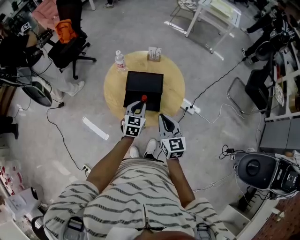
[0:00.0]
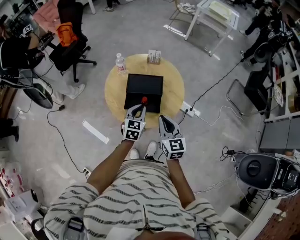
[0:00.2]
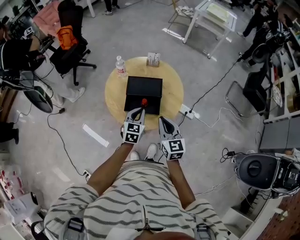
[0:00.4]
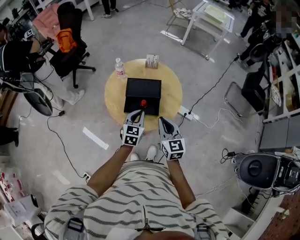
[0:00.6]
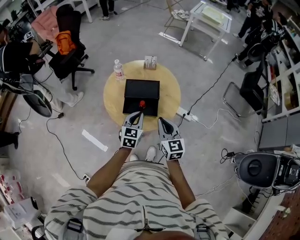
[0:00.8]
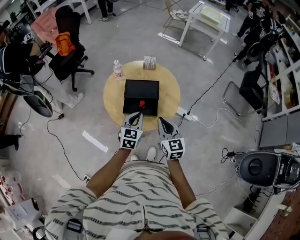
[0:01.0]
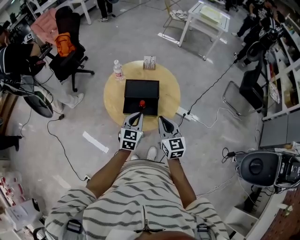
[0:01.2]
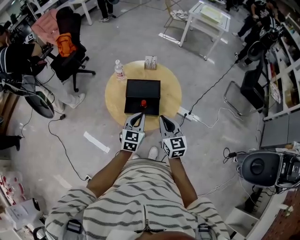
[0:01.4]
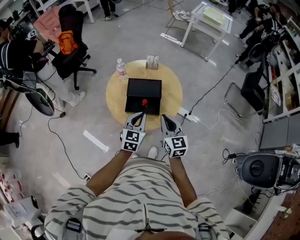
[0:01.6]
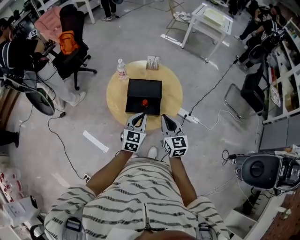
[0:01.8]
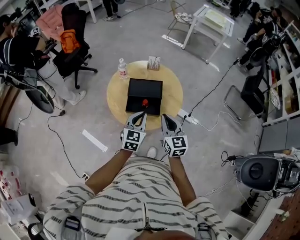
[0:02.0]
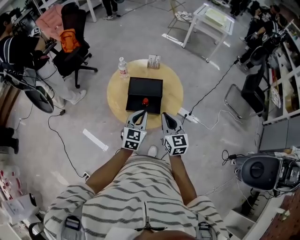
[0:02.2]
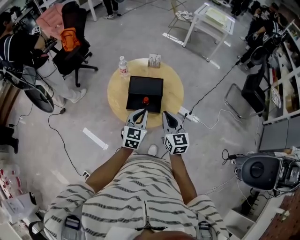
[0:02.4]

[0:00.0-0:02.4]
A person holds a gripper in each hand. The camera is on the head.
0:00.0 to 0:01.2: The left gripper heads backward and upward, covering about 10 cm.
0:01.2 to 0:02.4: There are only small adjustments of the grippers.

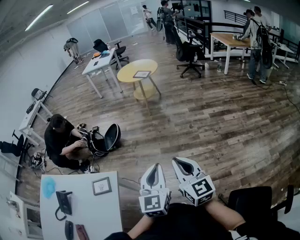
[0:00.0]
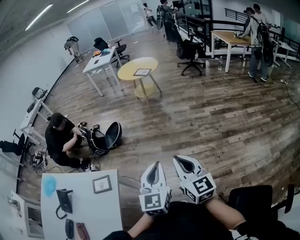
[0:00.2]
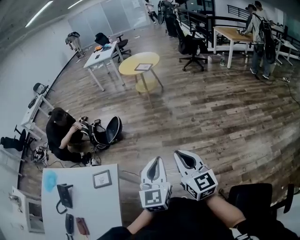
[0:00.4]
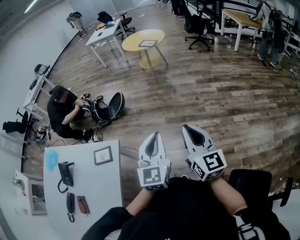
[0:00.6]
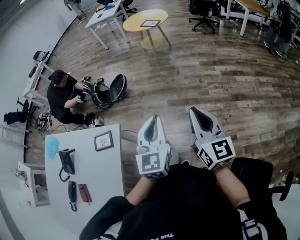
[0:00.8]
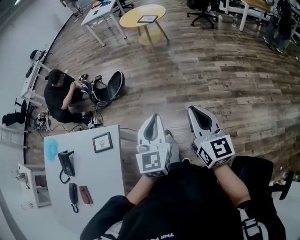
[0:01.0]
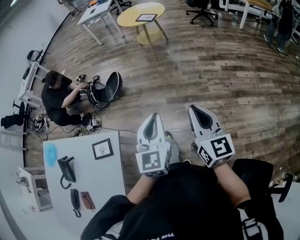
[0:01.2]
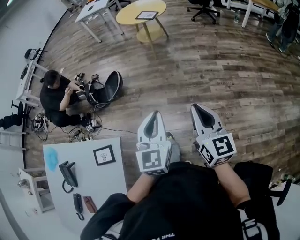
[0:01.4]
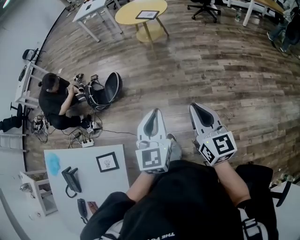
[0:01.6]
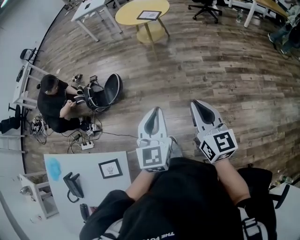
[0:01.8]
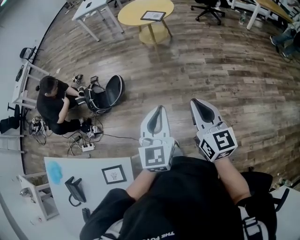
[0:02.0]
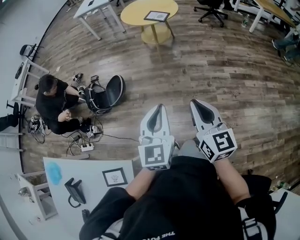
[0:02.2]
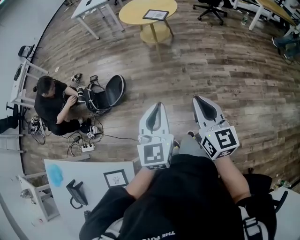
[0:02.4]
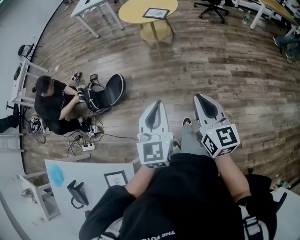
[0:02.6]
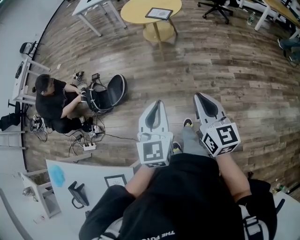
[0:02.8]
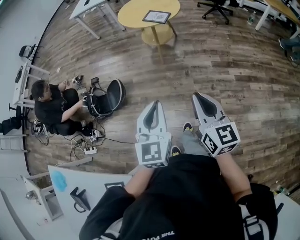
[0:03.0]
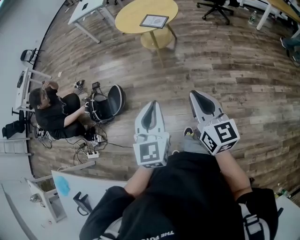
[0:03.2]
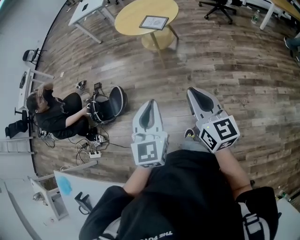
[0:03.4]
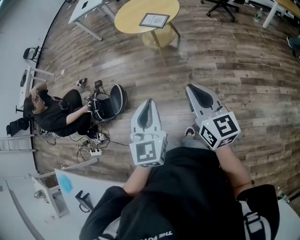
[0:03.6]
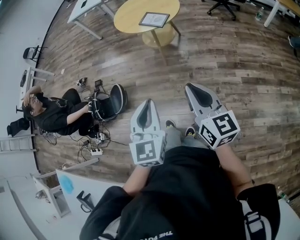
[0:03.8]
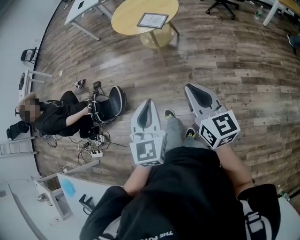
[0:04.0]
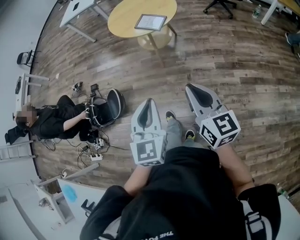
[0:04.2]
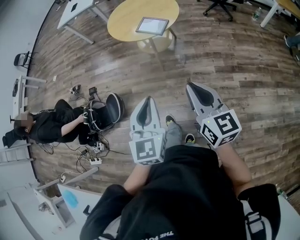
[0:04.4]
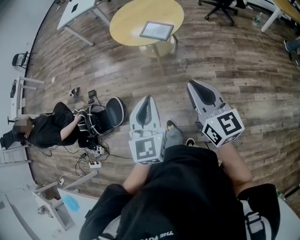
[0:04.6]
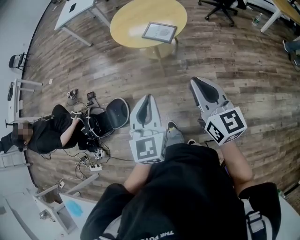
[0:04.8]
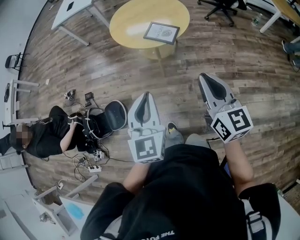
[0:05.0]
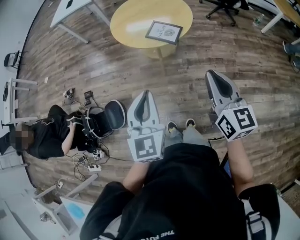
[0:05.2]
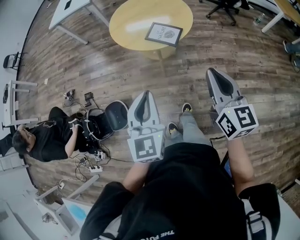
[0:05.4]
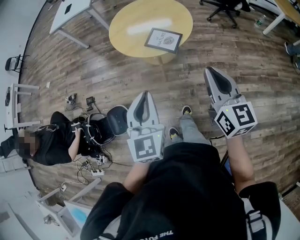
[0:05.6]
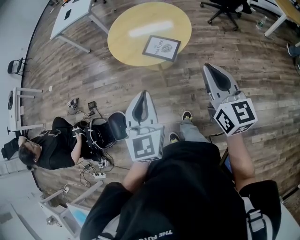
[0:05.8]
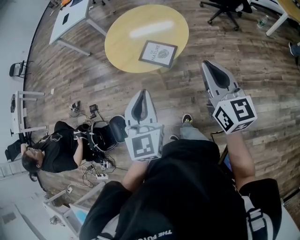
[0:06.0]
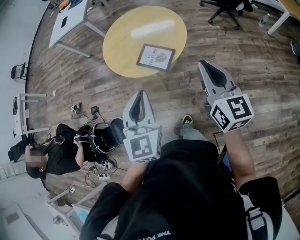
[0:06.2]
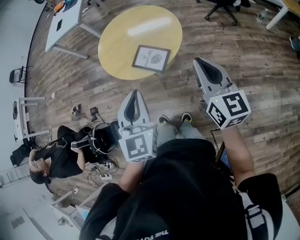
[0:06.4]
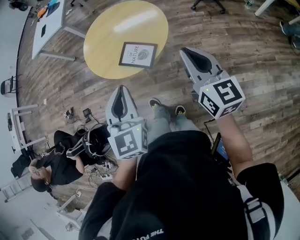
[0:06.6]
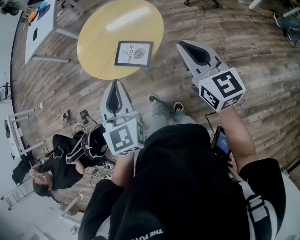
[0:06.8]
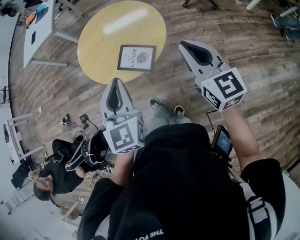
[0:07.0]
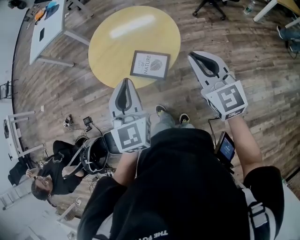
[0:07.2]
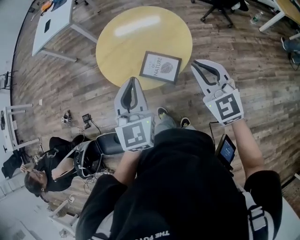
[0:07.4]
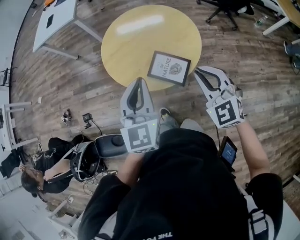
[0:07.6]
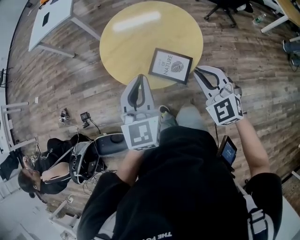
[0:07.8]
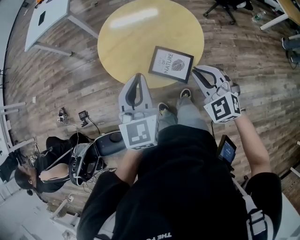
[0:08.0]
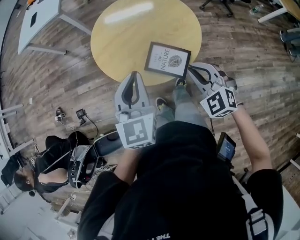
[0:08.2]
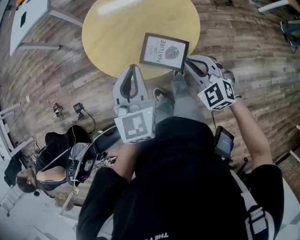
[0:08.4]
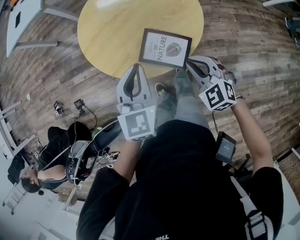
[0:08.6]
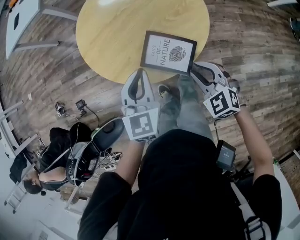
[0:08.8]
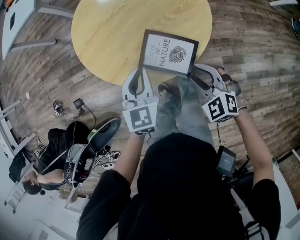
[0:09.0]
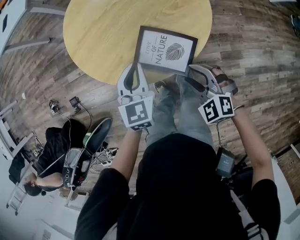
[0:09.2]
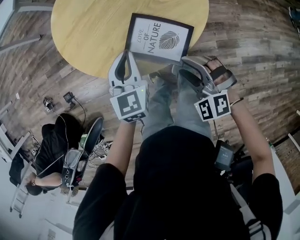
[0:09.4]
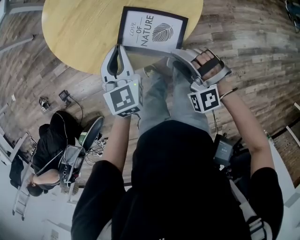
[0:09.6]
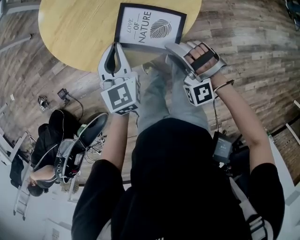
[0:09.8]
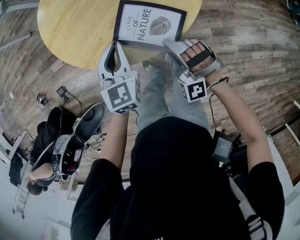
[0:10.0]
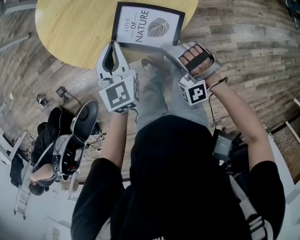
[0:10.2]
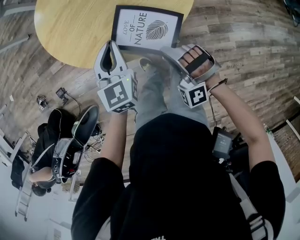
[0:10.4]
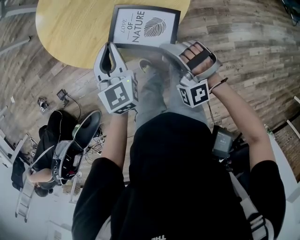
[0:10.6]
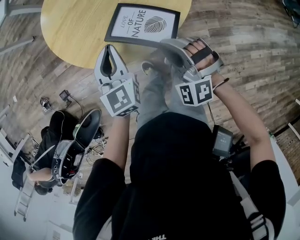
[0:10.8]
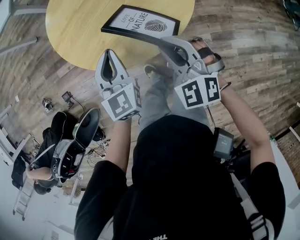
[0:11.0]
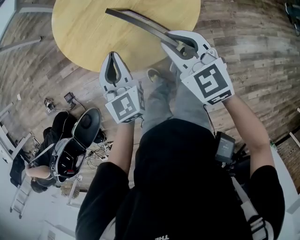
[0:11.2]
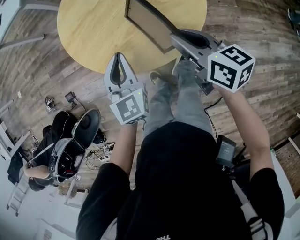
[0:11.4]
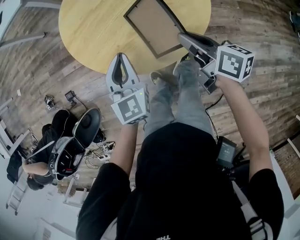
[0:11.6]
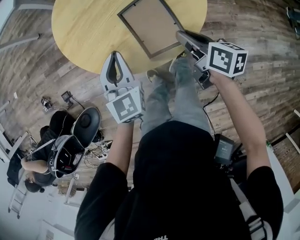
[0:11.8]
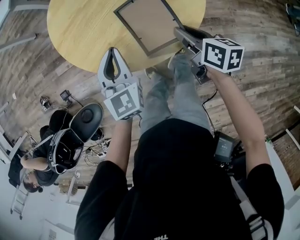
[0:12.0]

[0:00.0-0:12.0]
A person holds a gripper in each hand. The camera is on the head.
0:00.0 to 0:01.6: The two grippers go approximately 25 cm forward.
0:01.6 to 0:03.0: Both grippers move forward, approximately 30 cm.
0:03.0 to 0:04.4: Both grippers travel together forward, some 25 cm.
0:04.4 to 0:06.0: The grippers both shift forward by some 30 cm.
0:06.0 to 0:07.6: The right gripper is displaced forward, to the left and downward by some 20 cm, and rolls counterclockwise, seen from behind, by roughly 40 degrees. The left gripper heads forward, covering roughly 20 cm.
0:07.6 to 0:09.0: The two grippers go about 25 cm downward. The right gripper swivels about 20 degrees, and opens.
0:09.0 to 0:10.4: The right gripper changes place by some 5 cm, and turns by roughly 40 degrees. Meanwhile the left gripper shifts about 5 cm downward.
0:10.4 to 0:12.0: The right gripper shifts some 15 cm forward and to the right, reaches roughly 10 cm upward, then returns, and twists about 110 degrees clockwise, seen from behind.

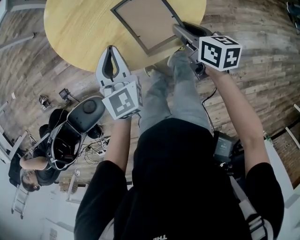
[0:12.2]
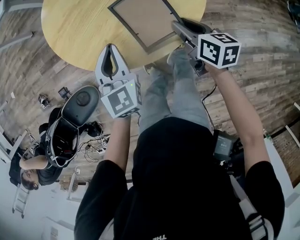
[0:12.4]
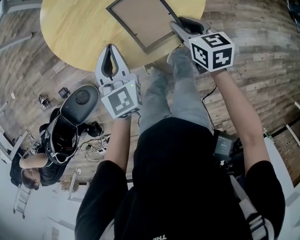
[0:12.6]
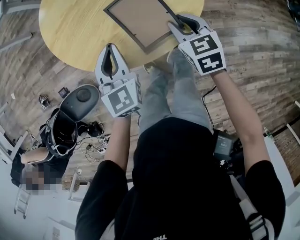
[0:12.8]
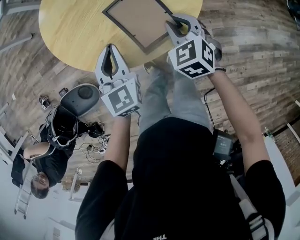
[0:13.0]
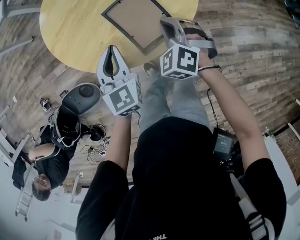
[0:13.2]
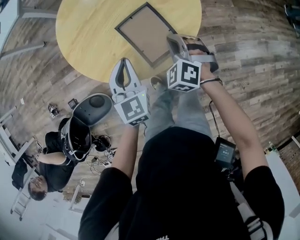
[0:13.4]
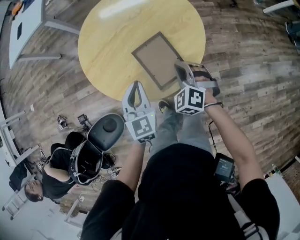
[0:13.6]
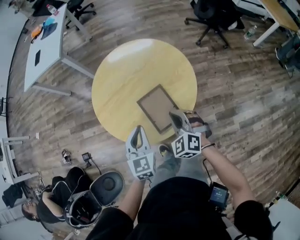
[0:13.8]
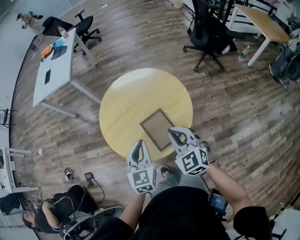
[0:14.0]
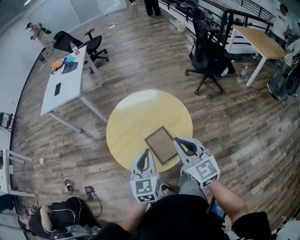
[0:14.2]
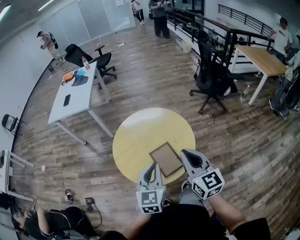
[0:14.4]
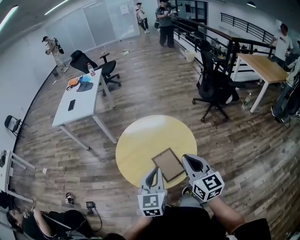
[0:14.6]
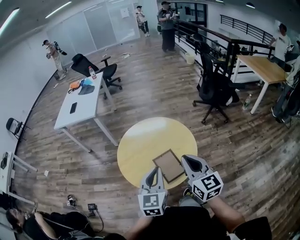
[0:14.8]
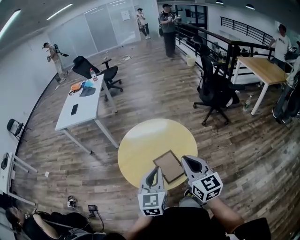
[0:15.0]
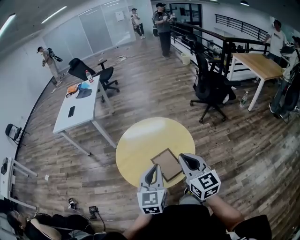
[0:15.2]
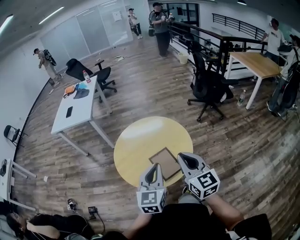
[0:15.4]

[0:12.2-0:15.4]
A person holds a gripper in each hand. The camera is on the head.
0:12.2 to 0:13.8: The right gripper goes roughly 10 cm upward and to the left, twists some 70 degrees counterclockwise, seen from behind, and closes up, while the left gripper heads upward, covering approximately 5 cm.
0:13.8 to 0:15.4: Both grippers move upward, about 25 cm. The left gripper rotates some 20 degrees. Meanwhile the right gripper angles its fingers upward, by approximately 40 degrees.

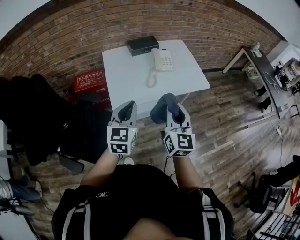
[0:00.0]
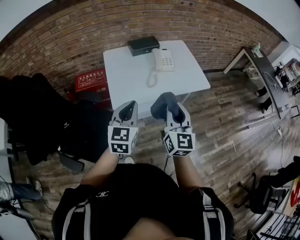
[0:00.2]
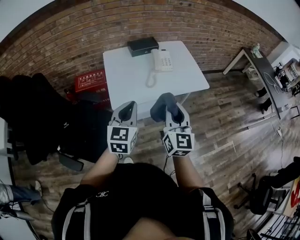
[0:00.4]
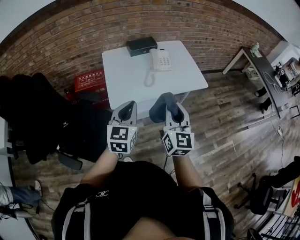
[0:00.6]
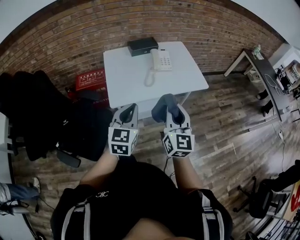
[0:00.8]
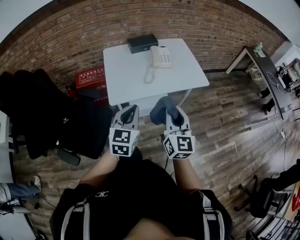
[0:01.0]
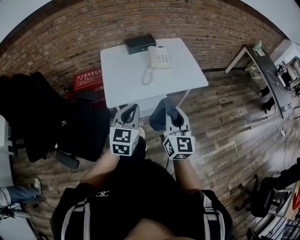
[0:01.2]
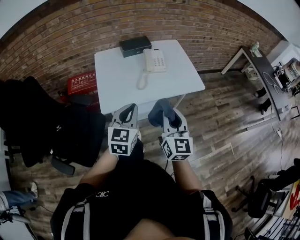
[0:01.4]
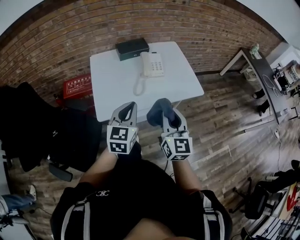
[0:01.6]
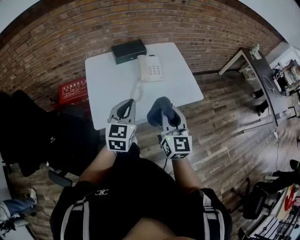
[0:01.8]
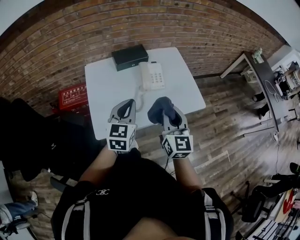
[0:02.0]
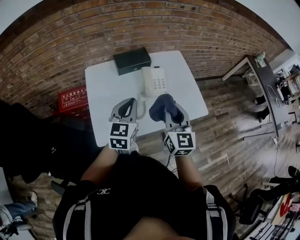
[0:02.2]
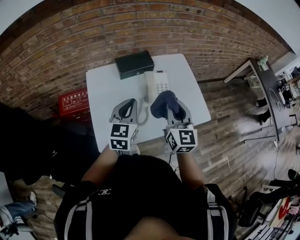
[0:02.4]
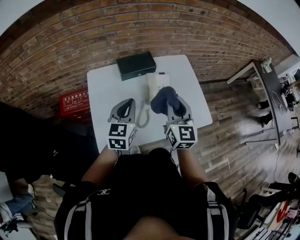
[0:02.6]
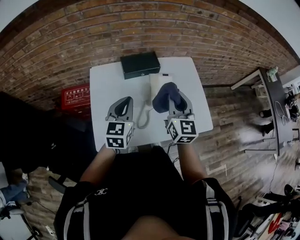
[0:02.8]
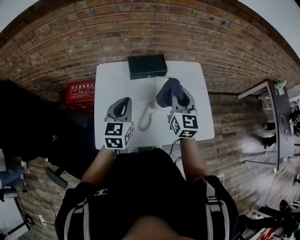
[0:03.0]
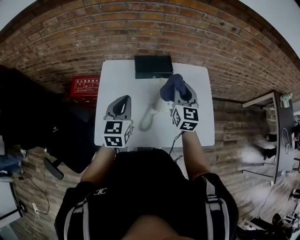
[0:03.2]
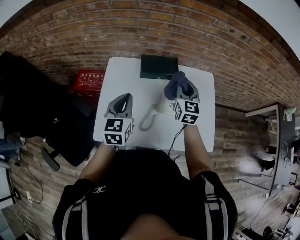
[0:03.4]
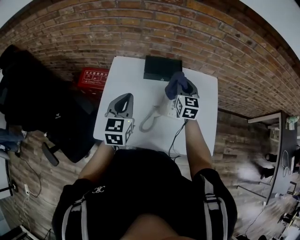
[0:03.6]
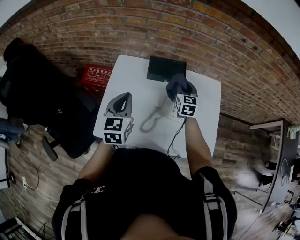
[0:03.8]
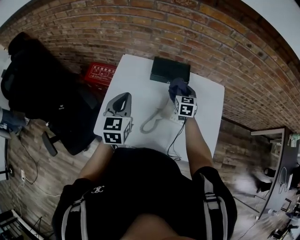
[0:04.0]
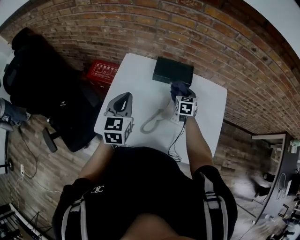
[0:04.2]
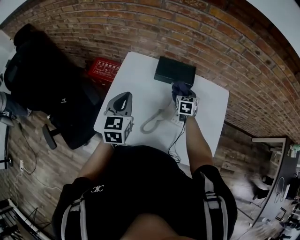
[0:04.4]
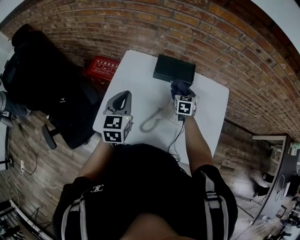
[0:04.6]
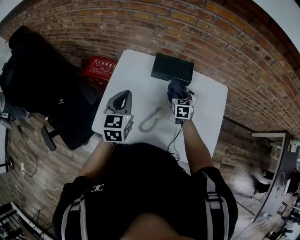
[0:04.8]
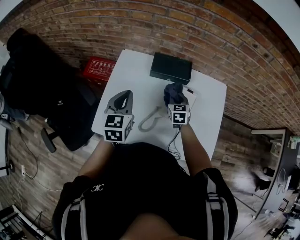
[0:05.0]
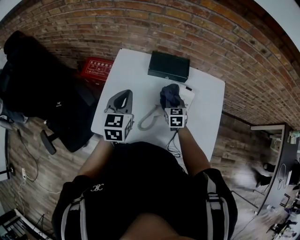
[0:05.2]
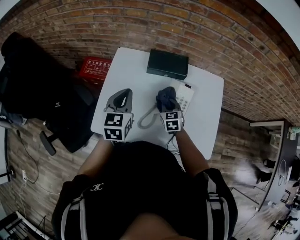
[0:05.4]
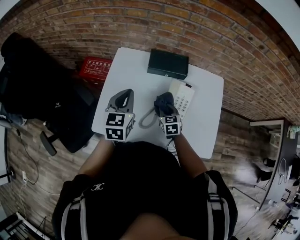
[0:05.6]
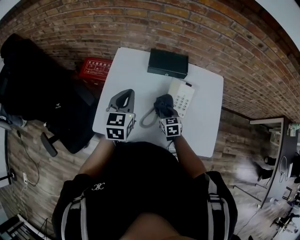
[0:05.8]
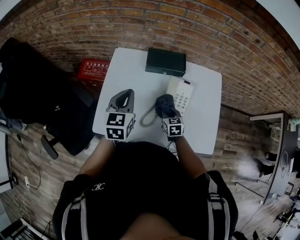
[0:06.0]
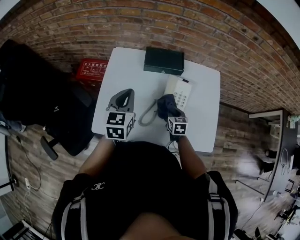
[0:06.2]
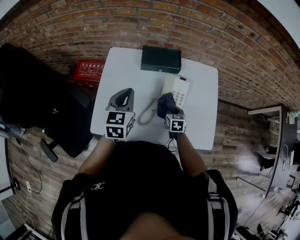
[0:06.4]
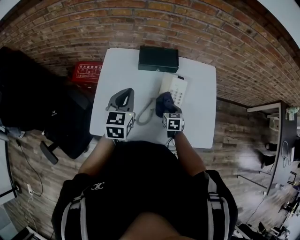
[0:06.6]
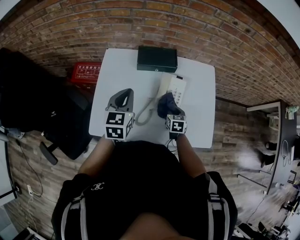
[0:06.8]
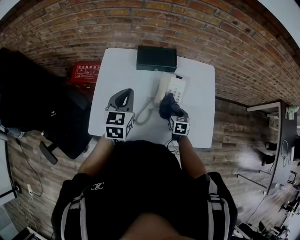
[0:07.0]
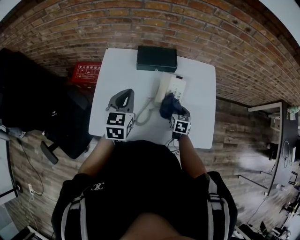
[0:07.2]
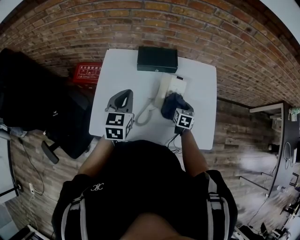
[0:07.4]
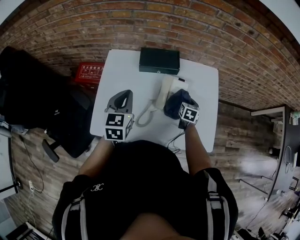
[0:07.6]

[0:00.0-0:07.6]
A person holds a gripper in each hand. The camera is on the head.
0:00.0 to 0:01.6: Both grippers travel together forward and to the right, some 10 cm.
0:01.6 to 0:03.0: Both grippers move forward, roughly 35 cm.
0:03.0 to 0:04.6: The right gripper heads downward and forward, covering approximately 30 cm, and points its fingers roughly 30 degrees further downward. The left gripper shifts by about 5 cm, and rotates approximately 20 degrees.
0:04.6 to 0:06.0: The right gripper is displaced backward by about 15 cm.
0:06.0 to 0:07.6: The right gripper heads to the right and forward, covering some 20 cm, and turns by approximately 30 degrees.
